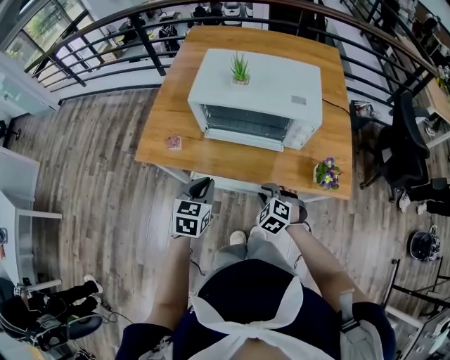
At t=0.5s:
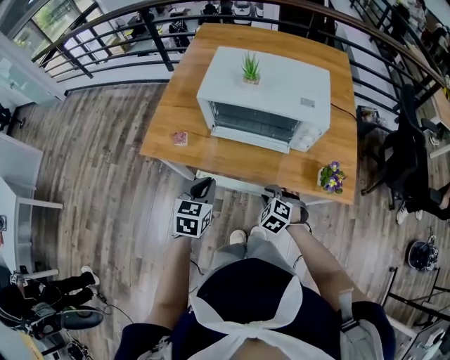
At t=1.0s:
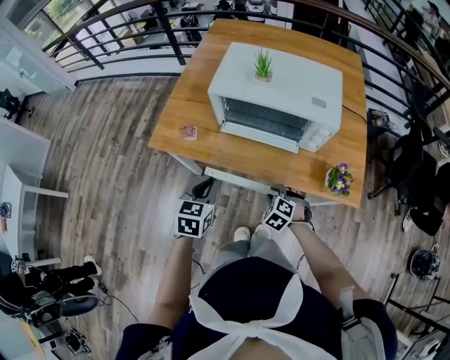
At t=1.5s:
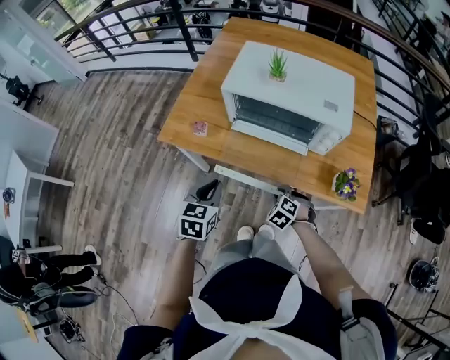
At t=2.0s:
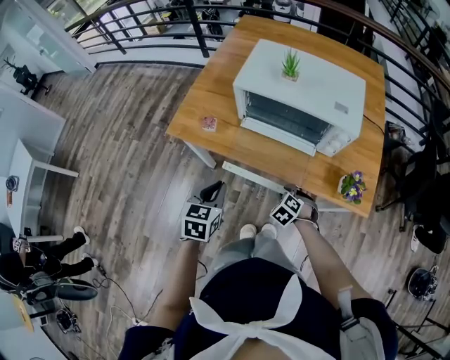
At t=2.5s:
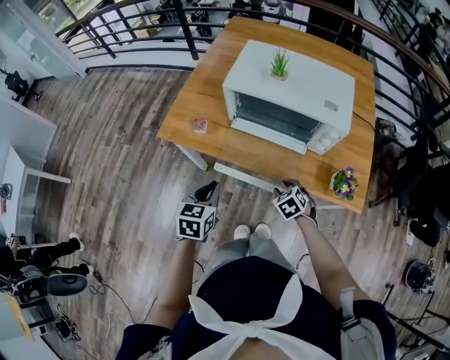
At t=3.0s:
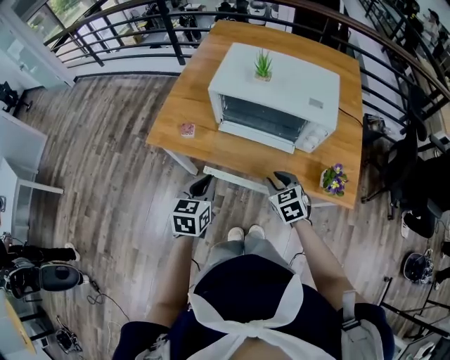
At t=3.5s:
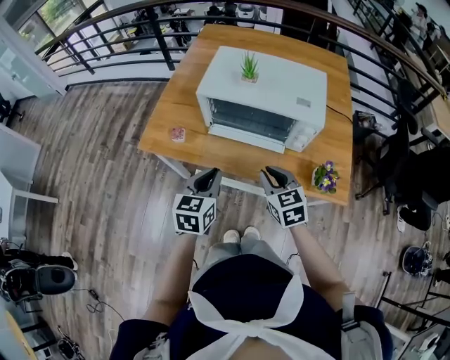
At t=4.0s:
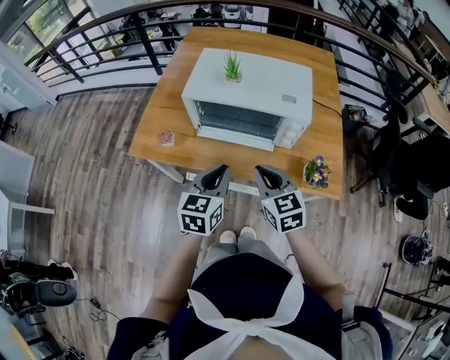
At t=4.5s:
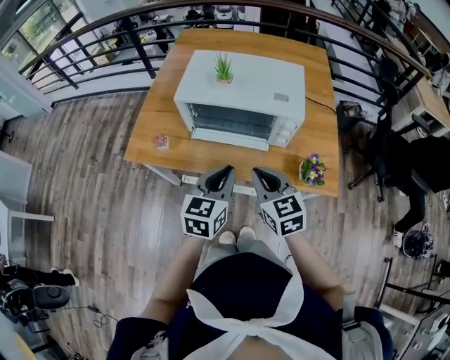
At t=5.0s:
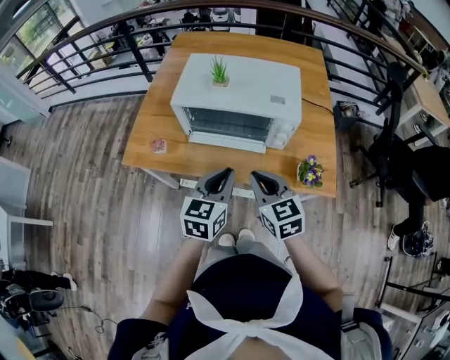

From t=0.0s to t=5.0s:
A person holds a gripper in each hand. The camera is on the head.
From t=0.0s to t=2.5s: The left gripper is displaced backward by roughly 5 cm.
From t=2.5s to t=5.0s: The right gripper shifts some 25 cm upward, tilts its fingers approximately 40 degrees upward, and closes its fingers. Meanwhile the left gripper travels to the right and upward by about 20 cm, and rotates roughly 20 degrees.

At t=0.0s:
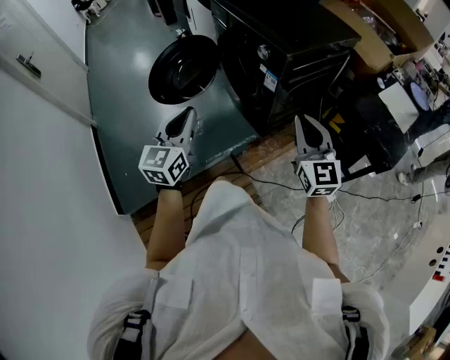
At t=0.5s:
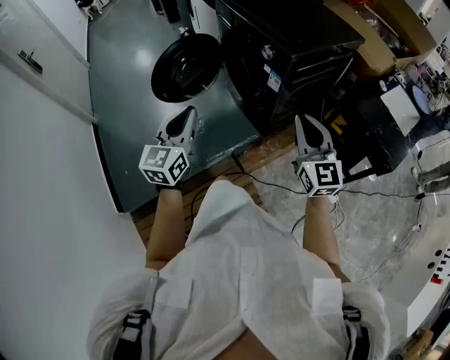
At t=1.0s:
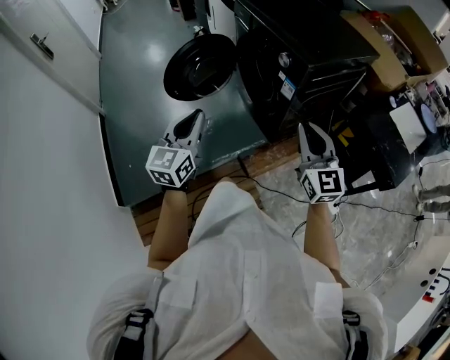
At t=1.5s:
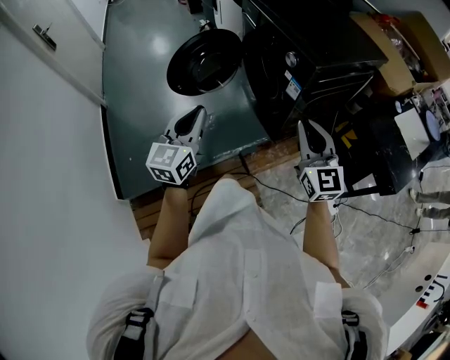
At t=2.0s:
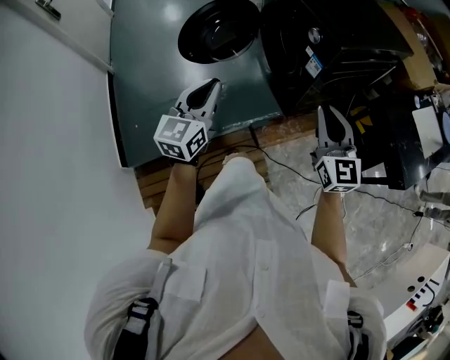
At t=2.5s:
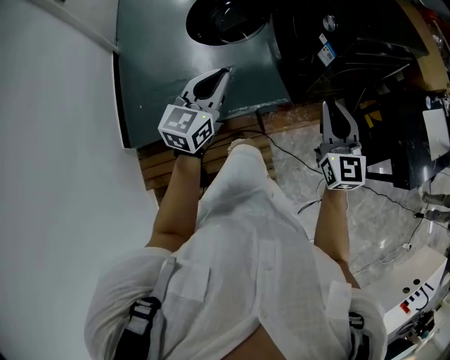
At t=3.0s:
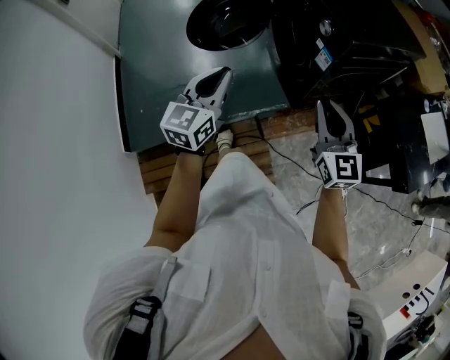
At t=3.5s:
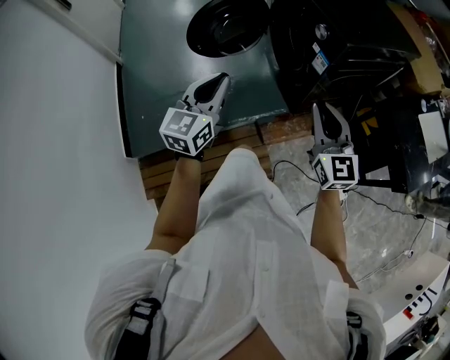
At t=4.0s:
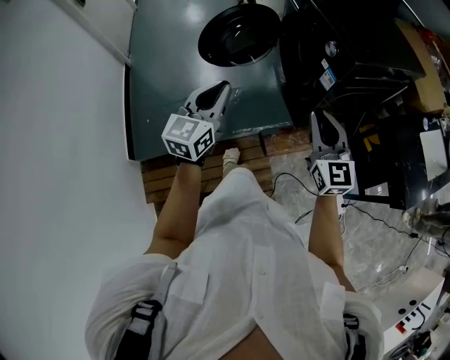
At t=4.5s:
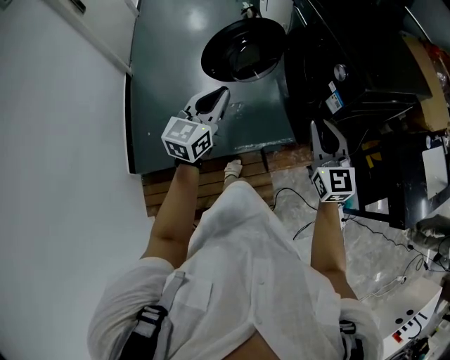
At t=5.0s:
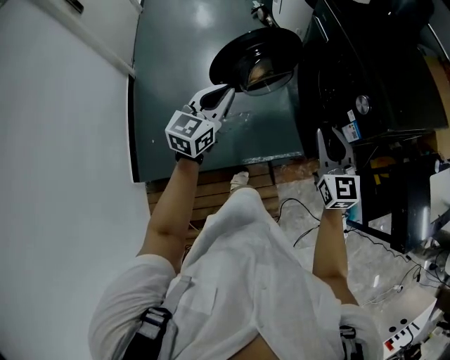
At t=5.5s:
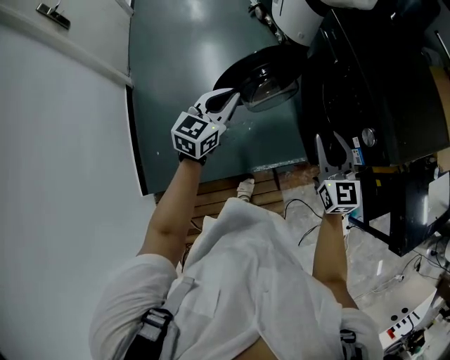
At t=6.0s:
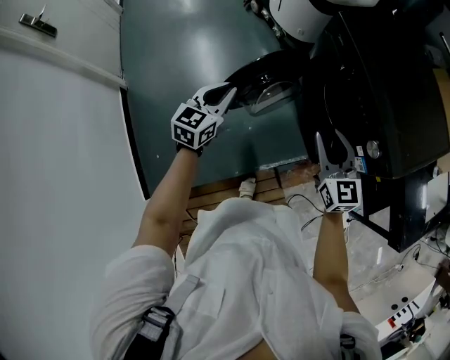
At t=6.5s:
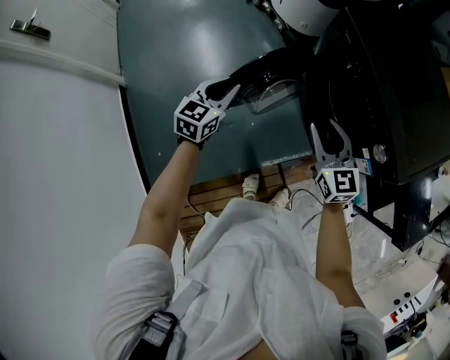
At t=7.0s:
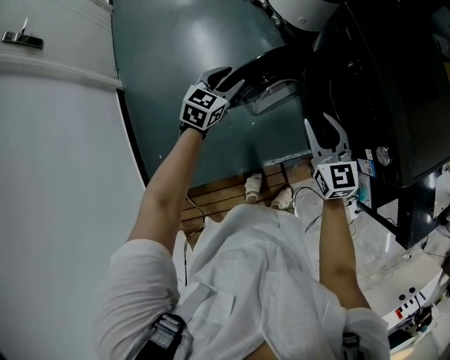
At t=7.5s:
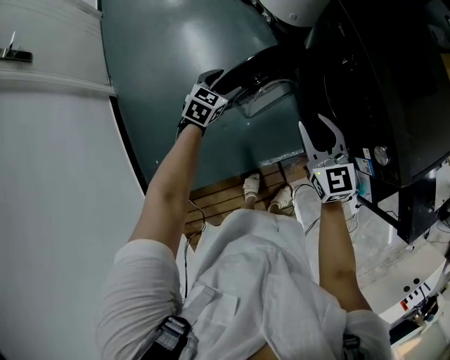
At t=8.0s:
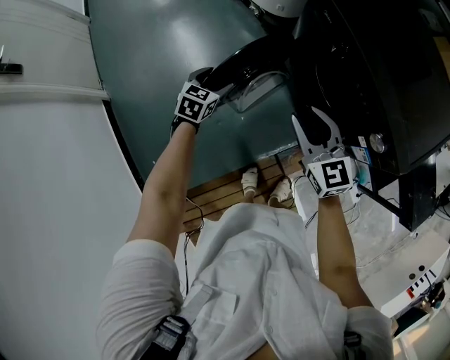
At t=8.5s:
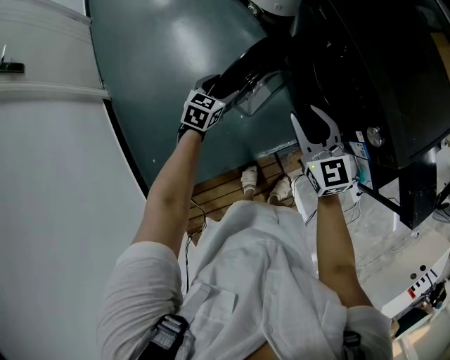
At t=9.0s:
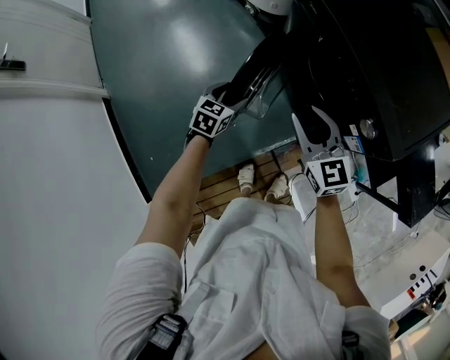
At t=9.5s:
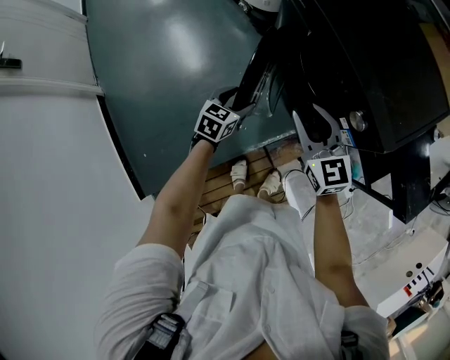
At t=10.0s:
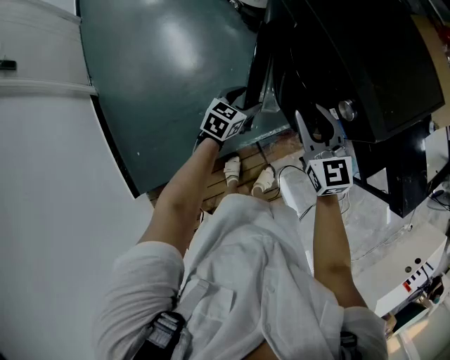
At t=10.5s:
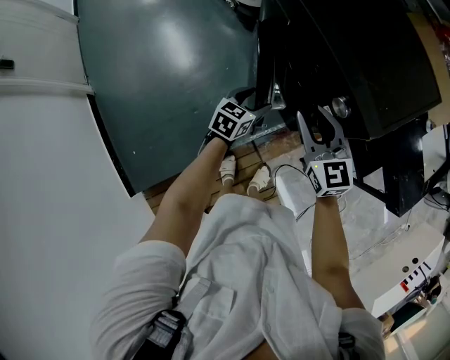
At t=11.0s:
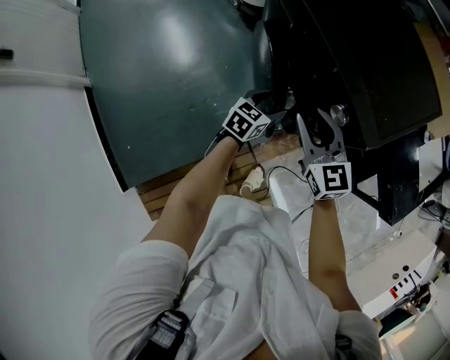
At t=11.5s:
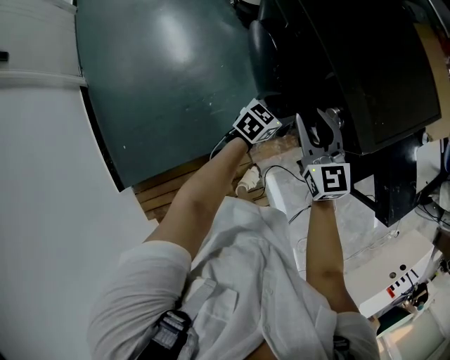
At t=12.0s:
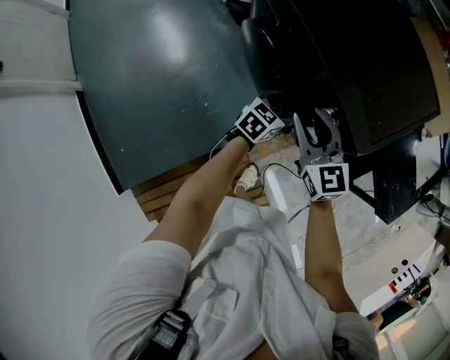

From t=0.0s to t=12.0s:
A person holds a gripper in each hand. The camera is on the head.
From t=0.0s to t=2.0s: The left gripper shifts by approximately 5 cm. The right gripper moves to the left, about 5 cm.
From t=2.0s to t=4.0s: The grippers stay close to where they were, moving slightly.
From t=4.0s to t=6.0s: The grippers both shift forward and to the left by some 40 cm. The right gripper opens.
From t=6.0s to t=8.0s: The left gripper shifts some 20 cm downward and forward, swivels roughly 20 degrees, and opens its fingers, while the right gripper goes approximately 5 cm forward.
From t=8.0s to t=10.0s: The right gripper travels to the right by some 10 cm. The left gripper moves to the right and backward, some 25 cm.
From t=10.0s to t=12.0s: The right gripper shifts some 5 cm to the right, while the left gripper travels to the right by roughly 20 cm.

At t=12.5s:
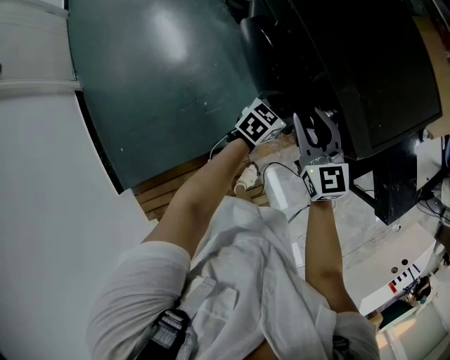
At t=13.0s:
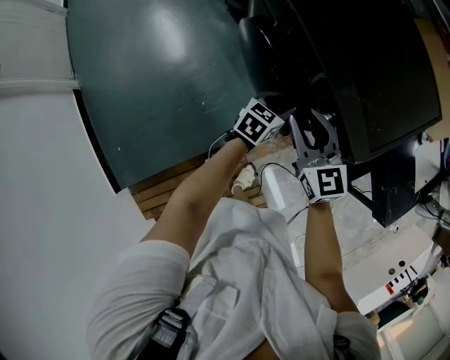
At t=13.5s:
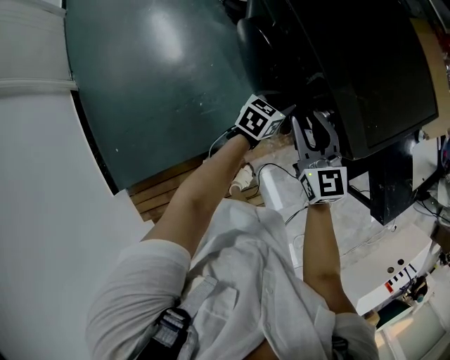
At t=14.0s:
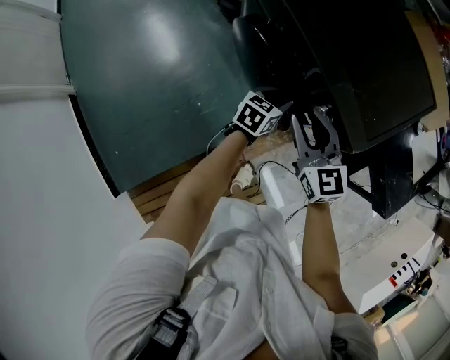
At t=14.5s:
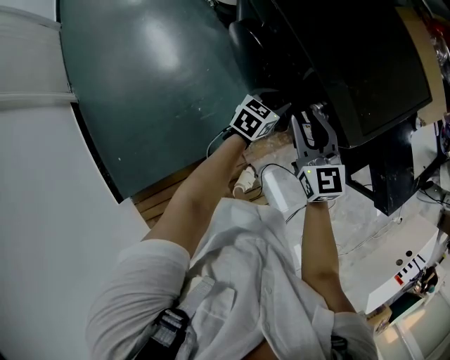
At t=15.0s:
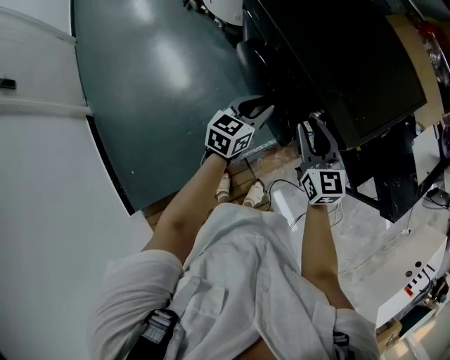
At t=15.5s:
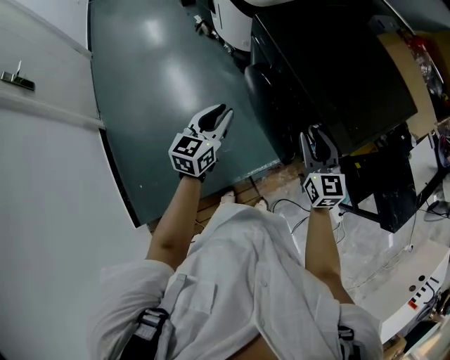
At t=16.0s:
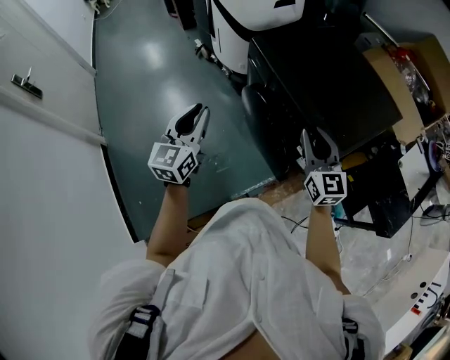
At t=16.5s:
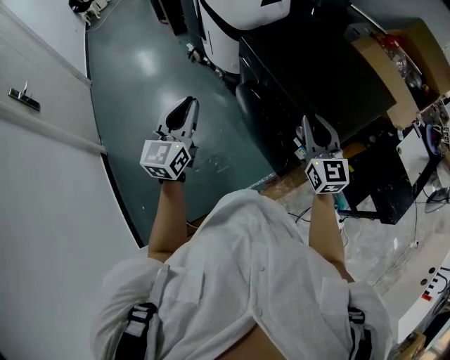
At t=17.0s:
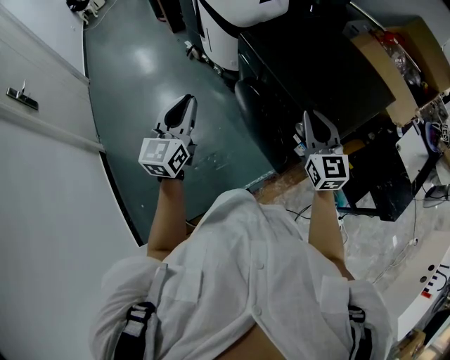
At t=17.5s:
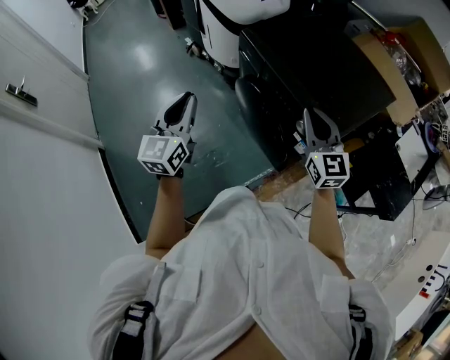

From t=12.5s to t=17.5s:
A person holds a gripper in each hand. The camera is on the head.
From t=12.5s to t=15.0s: The right gripper ends up about 5 cm from where it was. The left gripper is displaced upward and to the left by about 15 cm, and closes.
From t=15.0s to t=17.5s: The left gripper moves upward and to the left, about 30 cm, and rotates about 30 degrees, while the right gripper moves upward, roughly 15 cm, and closes its fingers.

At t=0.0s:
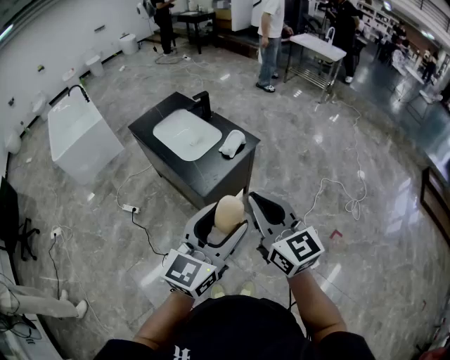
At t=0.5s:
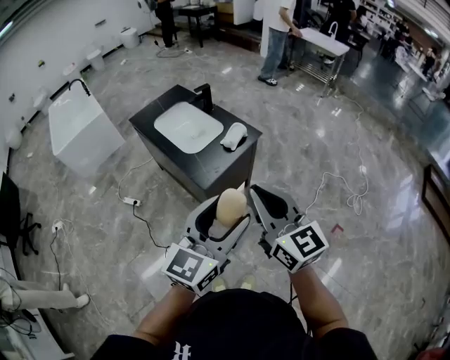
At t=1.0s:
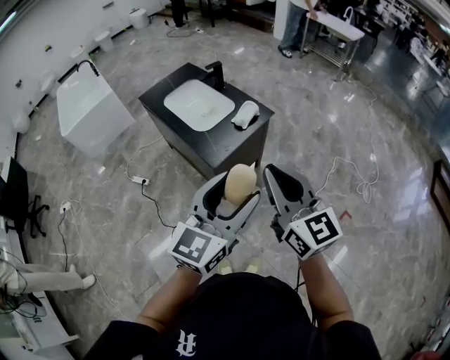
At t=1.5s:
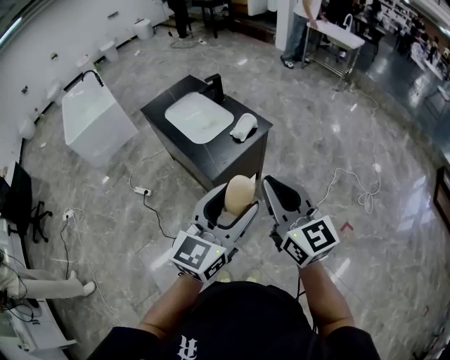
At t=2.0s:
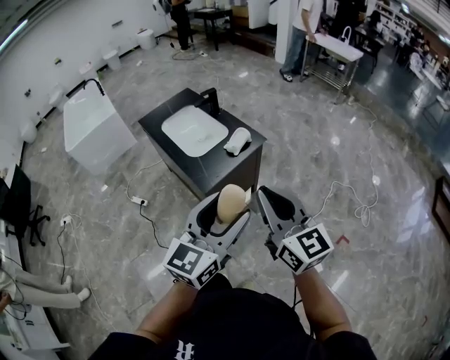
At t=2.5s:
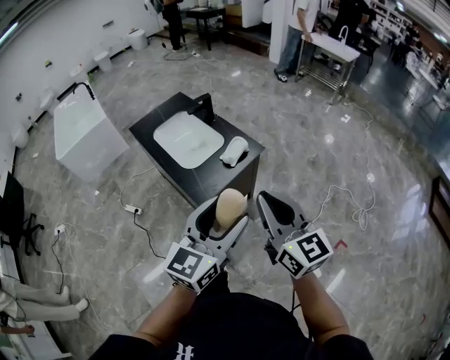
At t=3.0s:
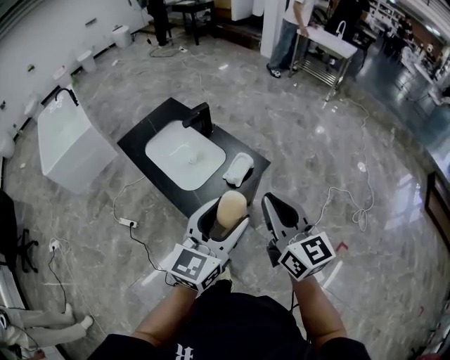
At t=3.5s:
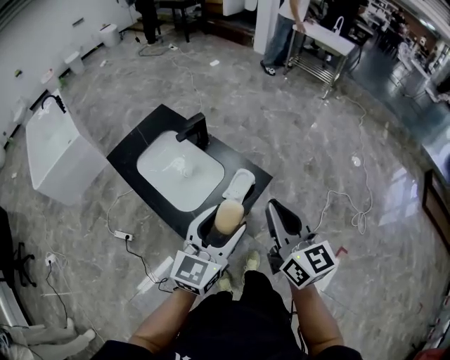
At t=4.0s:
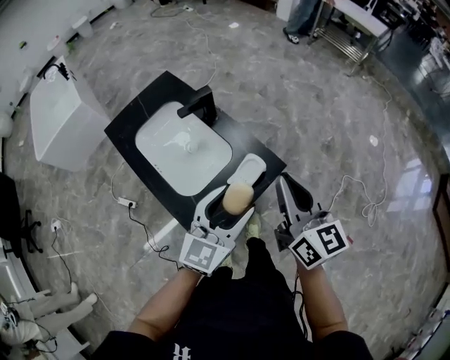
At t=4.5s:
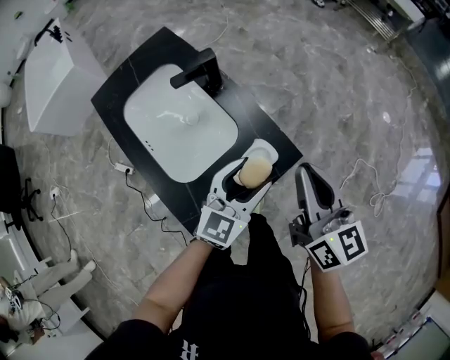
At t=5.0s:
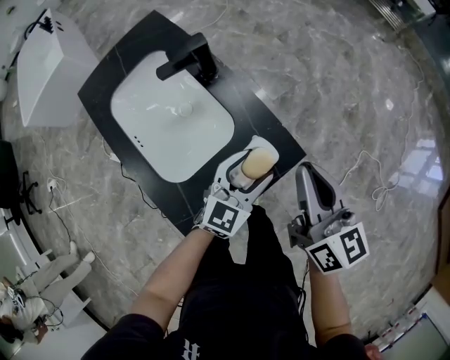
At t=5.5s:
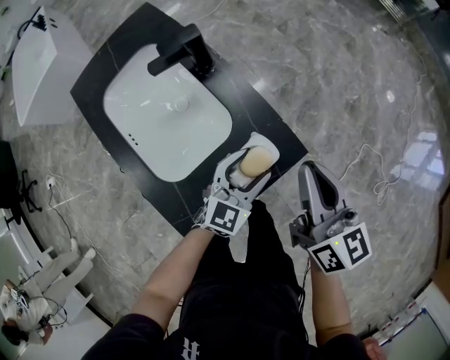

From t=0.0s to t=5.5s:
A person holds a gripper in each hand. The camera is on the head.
From t=0.0s to t=2.0s: The right gripper heads to the right, covering roughly 5 cm, while the left gripper changes place by about 5 cm.
From t=2.0s to t=3.5s: The grippers both shift forward by approximately 30 cm.
From t=3.5s to t=5.5s: The left gripper shifts about 35 cm downward and forward, while the right gripper is displaced forward and downward by roughly 30 cm.
